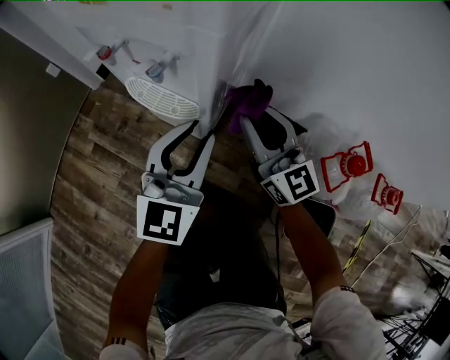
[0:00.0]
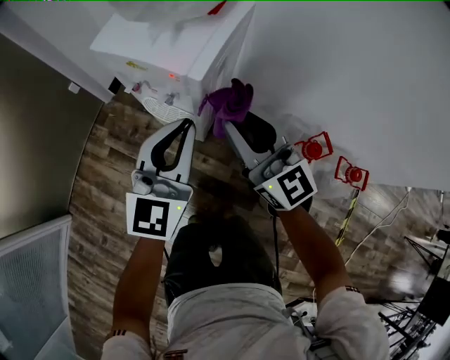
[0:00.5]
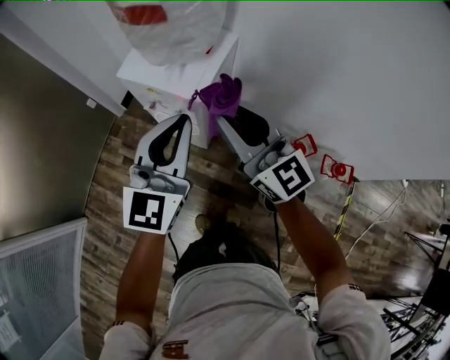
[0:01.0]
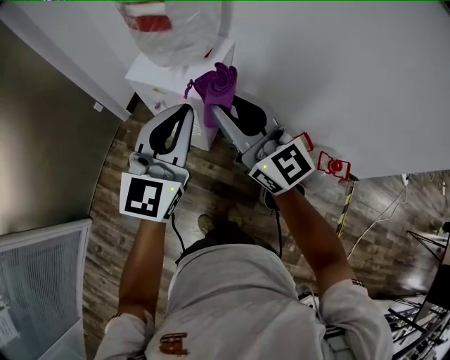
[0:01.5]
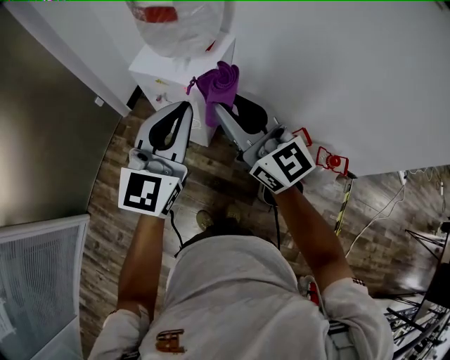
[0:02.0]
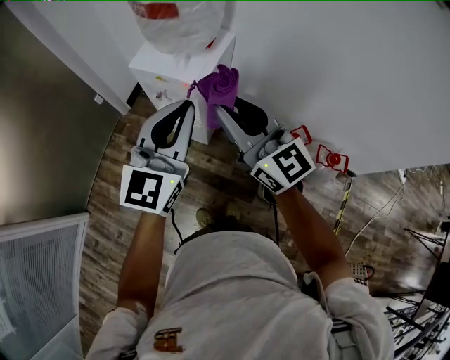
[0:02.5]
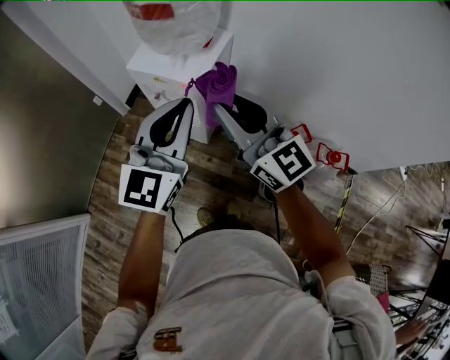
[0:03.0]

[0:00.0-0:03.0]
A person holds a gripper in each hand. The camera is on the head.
0:00.0 to 0:01.5: The two grippers go some 50 cm upward. The left gripper closes up.
0:01.5 to 0:03.0: The grippers make only small movements.

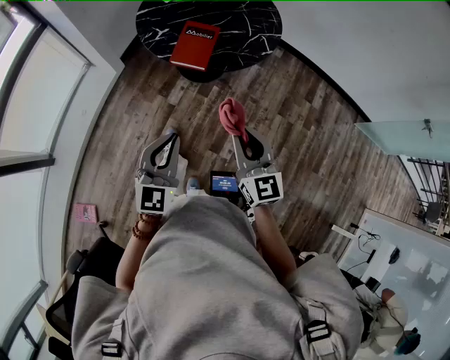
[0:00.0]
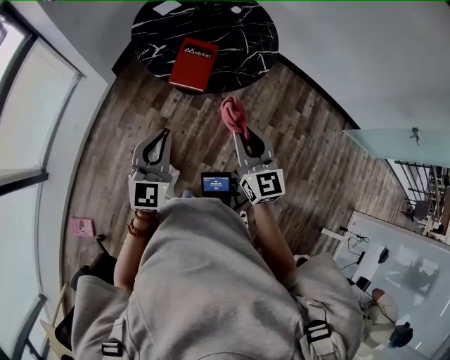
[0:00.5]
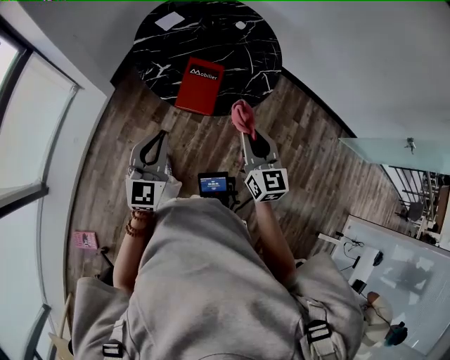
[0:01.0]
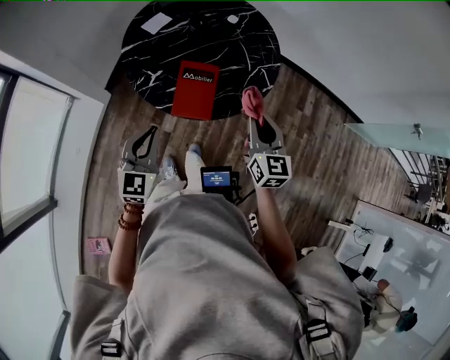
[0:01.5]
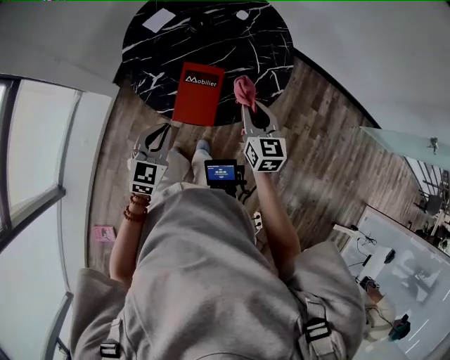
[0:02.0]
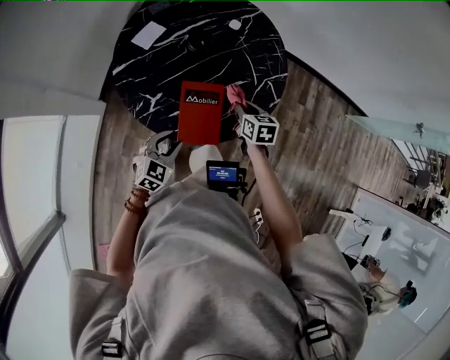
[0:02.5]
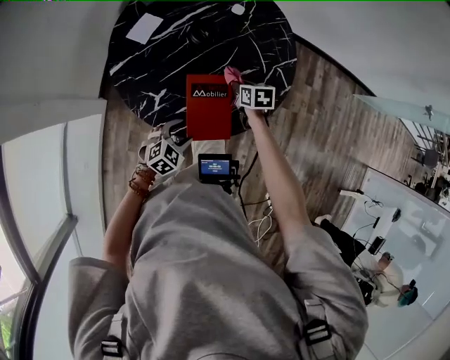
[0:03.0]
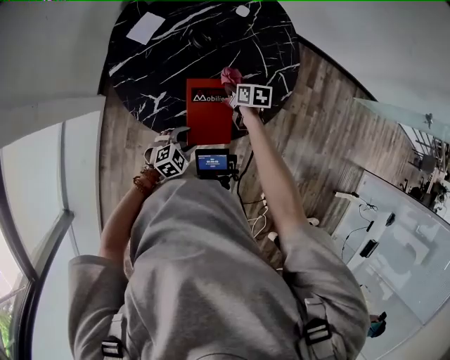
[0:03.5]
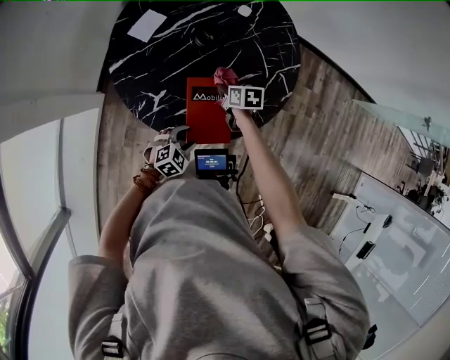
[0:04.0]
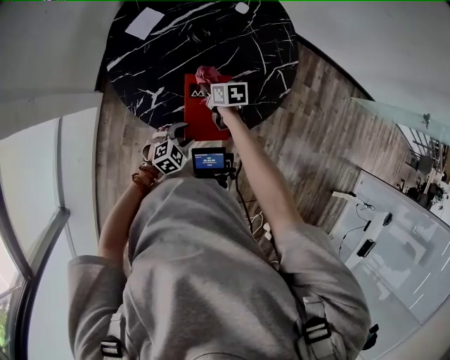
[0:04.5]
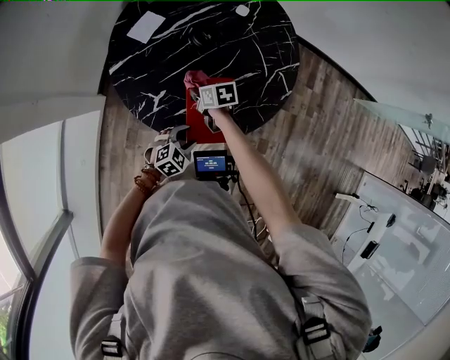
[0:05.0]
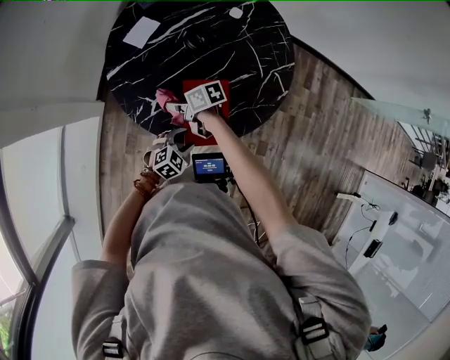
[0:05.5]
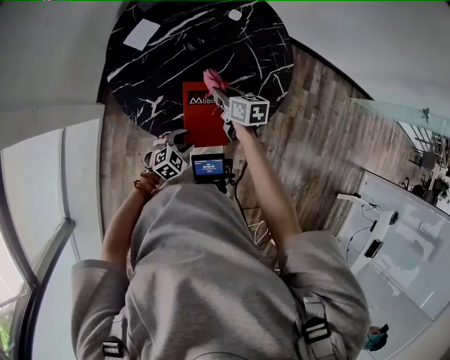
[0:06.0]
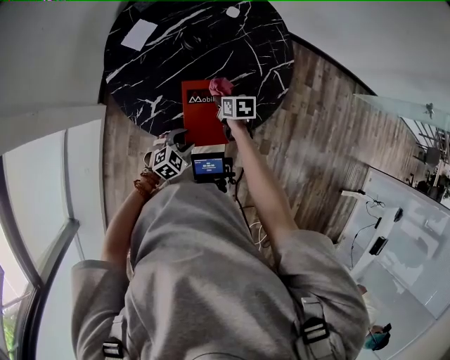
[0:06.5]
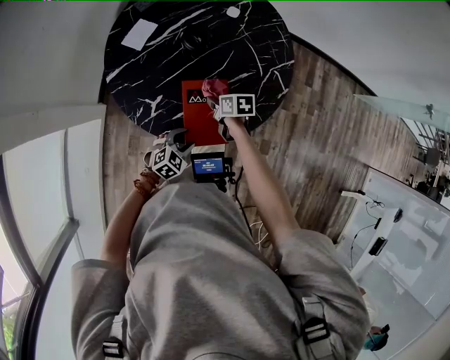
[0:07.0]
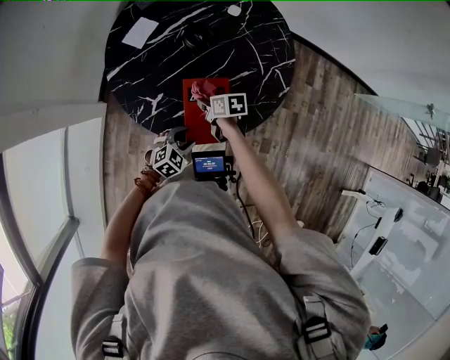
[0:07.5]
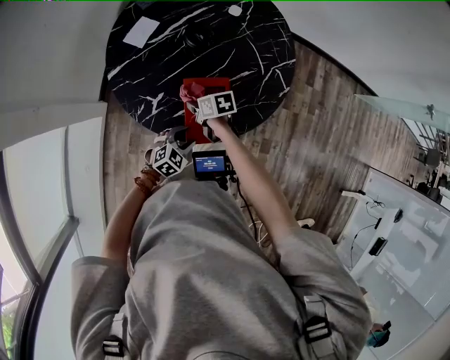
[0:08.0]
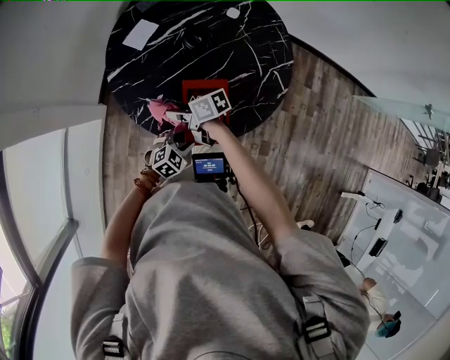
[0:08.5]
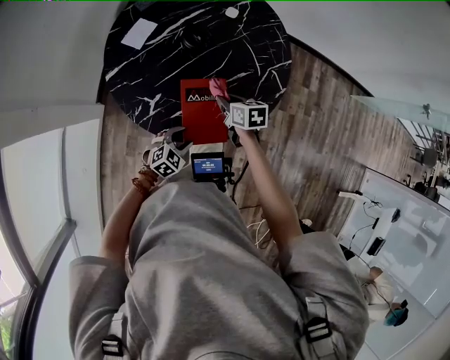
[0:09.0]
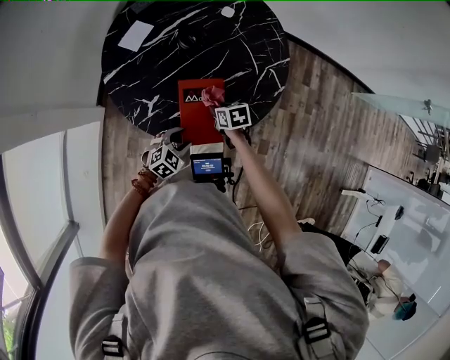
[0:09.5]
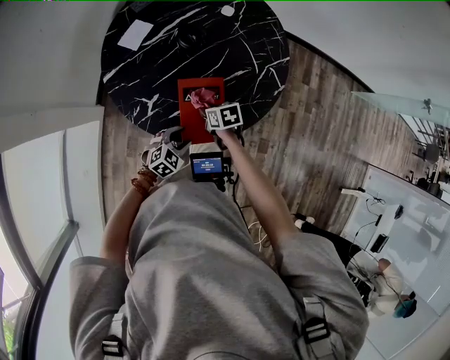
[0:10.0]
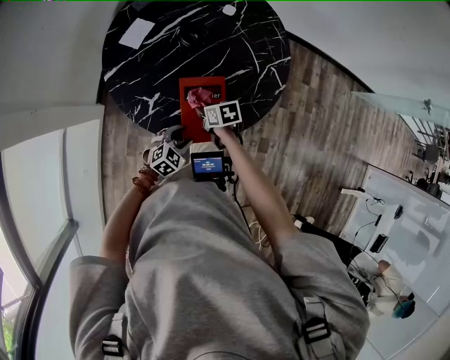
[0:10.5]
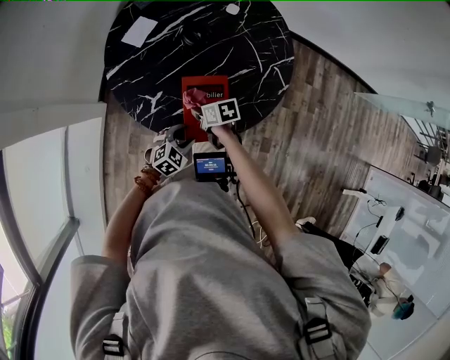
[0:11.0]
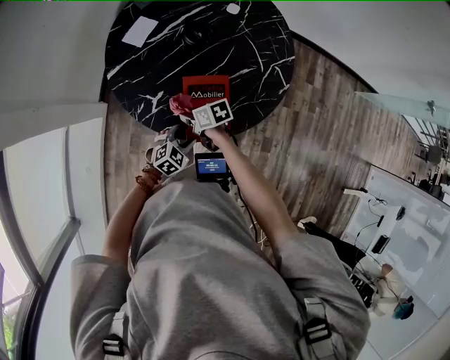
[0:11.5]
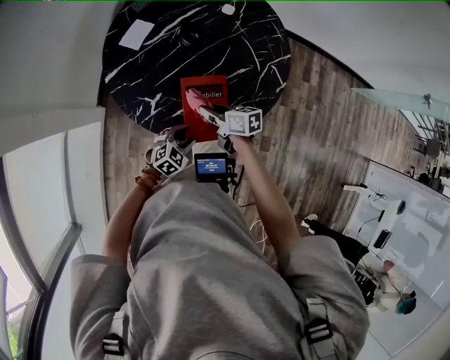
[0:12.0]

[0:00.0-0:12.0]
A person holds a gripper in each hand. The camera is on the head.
0:00.0 to 0:02.0: Both grippers move forward, roughly 35 cm. The right gripper turns by some 20 degrees.
0:02.0 to 0:04.0: The left gripper moves downward, approximately 20 cm, swivels some 50 degrees, and opens; the right gripper heads downward, forward and to the left, covering roughly 30 cm, and tips its fingers downward by about 30 degrees.
0:04.0 to 0:06.0: The right gripper goes about 10 cm upward.
0:06.0 to 0:08.0: The right gripper moves downward, to the left and backward, about 15 cm, and rotates roughly 20 degrees.
0:10.0 to 0:12.0: The right gripper heads upward, covering roughly 10 cm, and rotates about 30 degrees.

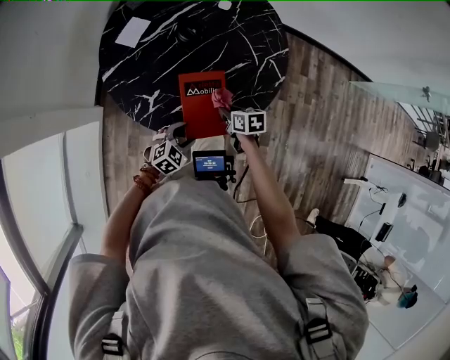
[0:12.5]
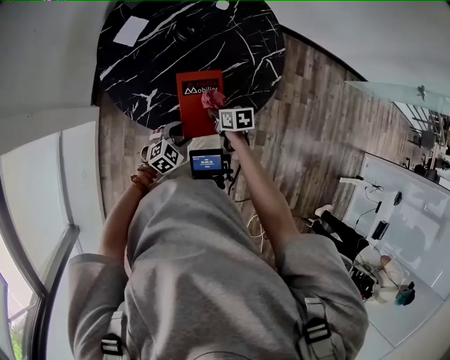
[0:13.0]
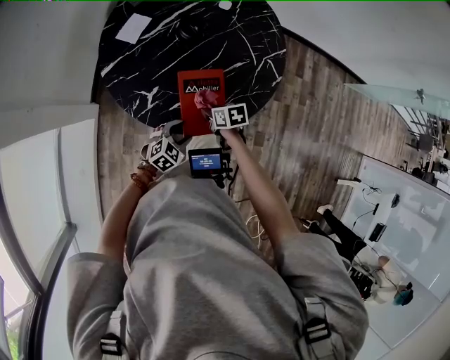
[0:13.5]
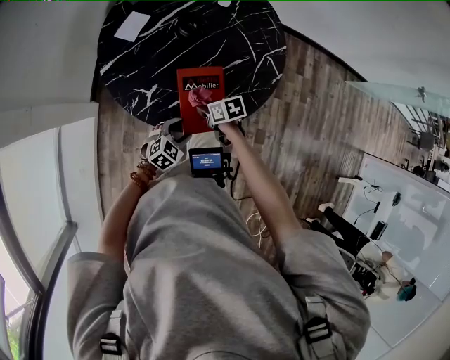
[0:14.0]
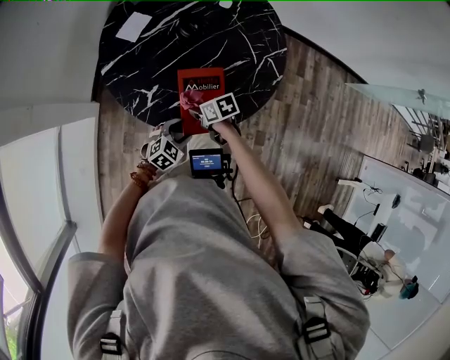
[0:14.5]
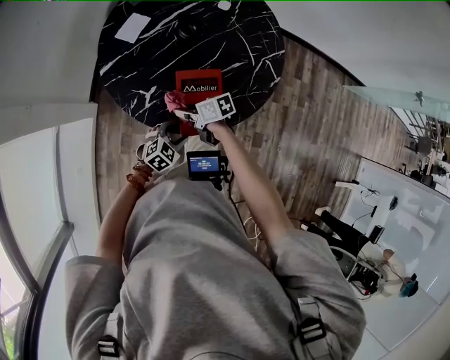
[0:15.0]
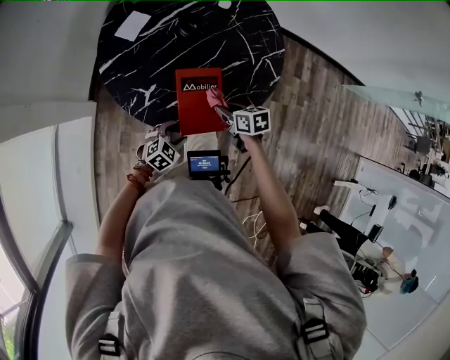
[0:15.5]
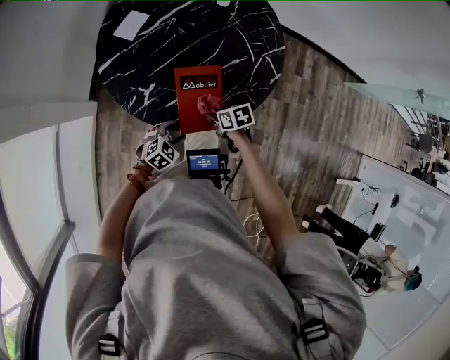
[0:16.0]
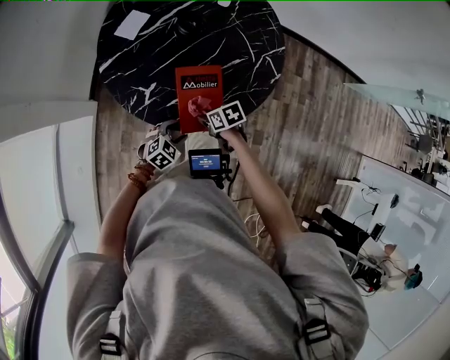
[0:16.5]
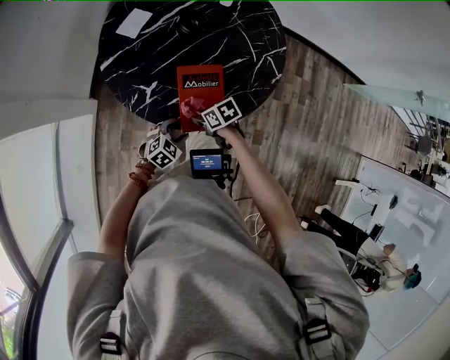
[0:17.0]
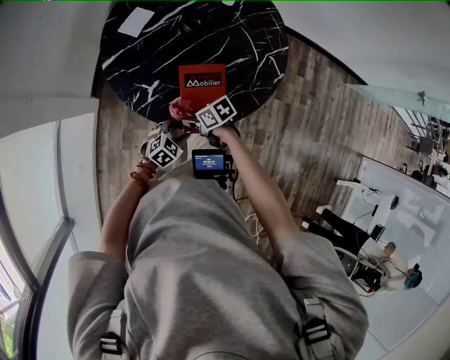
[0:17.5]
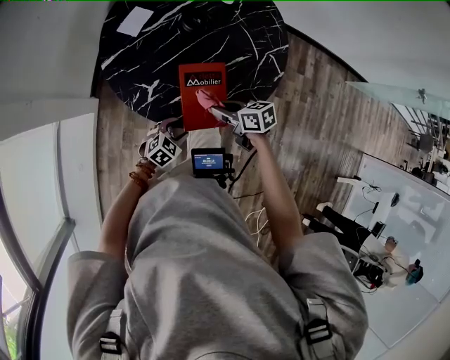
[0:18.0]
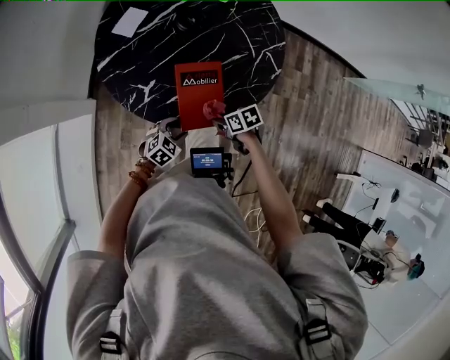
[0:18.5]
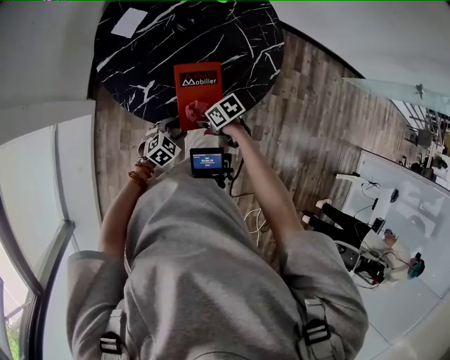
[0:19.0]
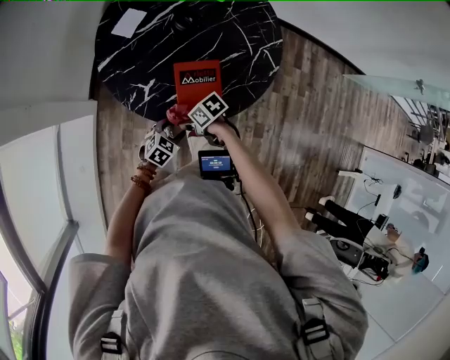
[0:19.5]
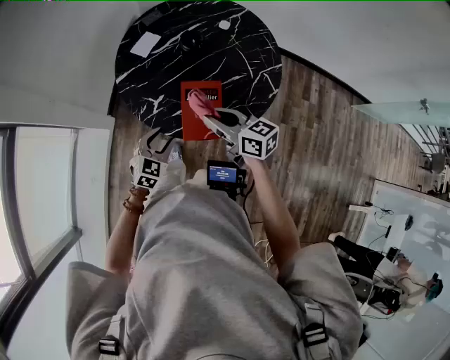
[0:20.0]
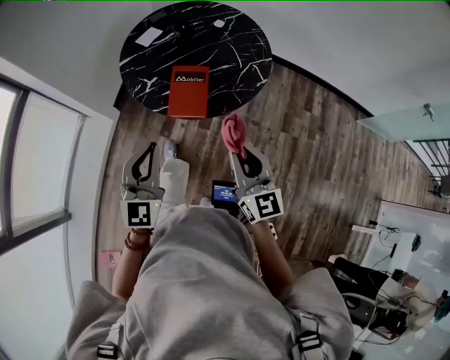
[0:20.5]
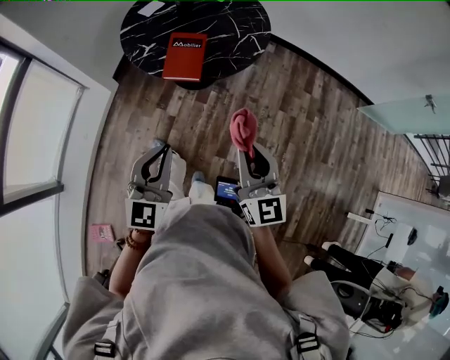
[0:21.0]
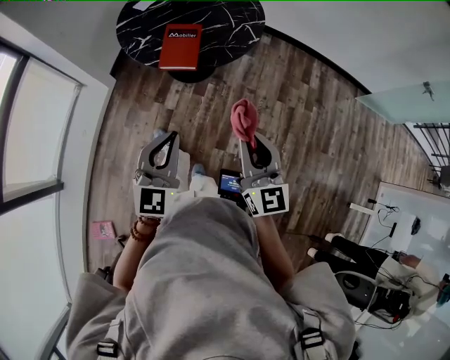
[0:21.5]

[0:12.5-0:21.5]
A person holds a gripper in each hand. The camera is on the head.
0:12.5 to 0:14.5: The right gripper changes place by roughly 10 cm, and changes its angle by roughly 20 degrees.
0:17.0 to 0:19.5: The right gripper reaches some 10 cm upward, then returns.
0:19.5 to 0:21.5: The left gripper heads upward, covering approximately 35 cm, points its fingers some 40 degrees further upward, and closes up, while the right gripper changes place by approximately 60 cm, and points its fingers some 50 degrees further upward.

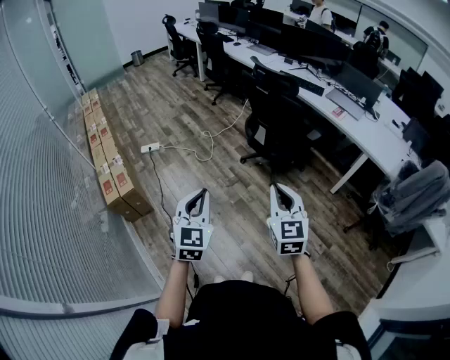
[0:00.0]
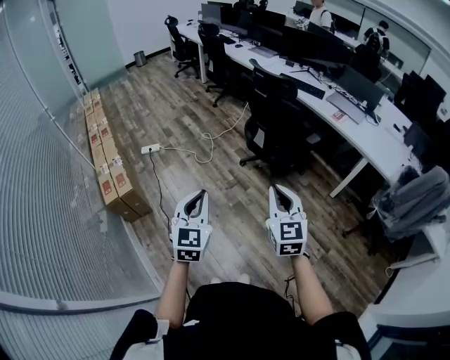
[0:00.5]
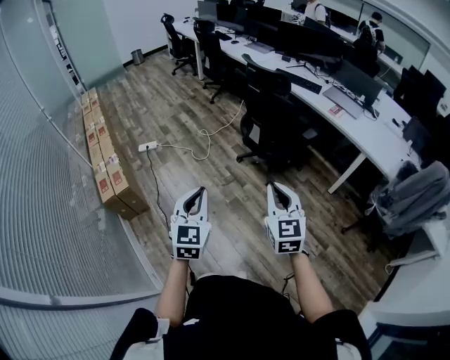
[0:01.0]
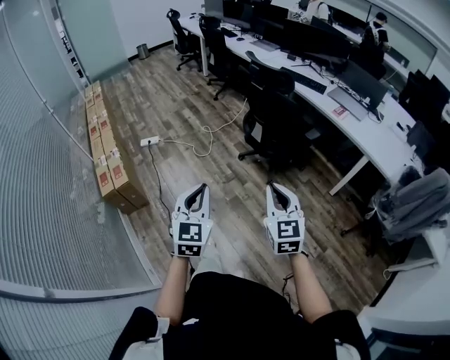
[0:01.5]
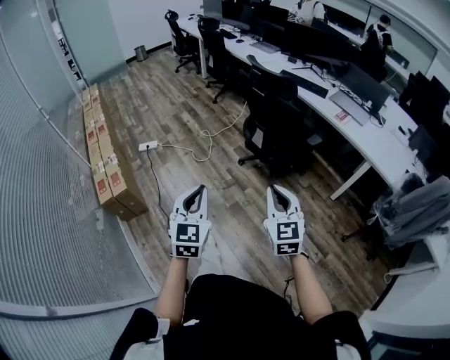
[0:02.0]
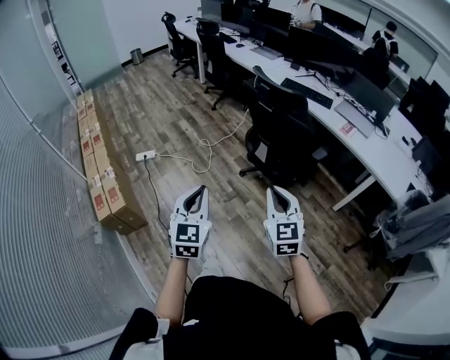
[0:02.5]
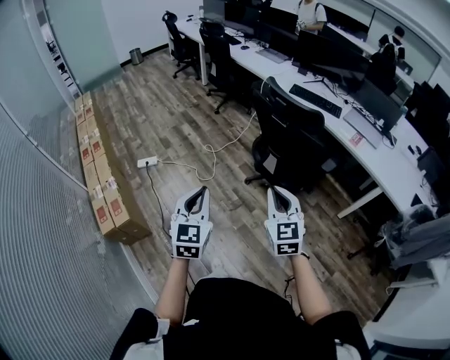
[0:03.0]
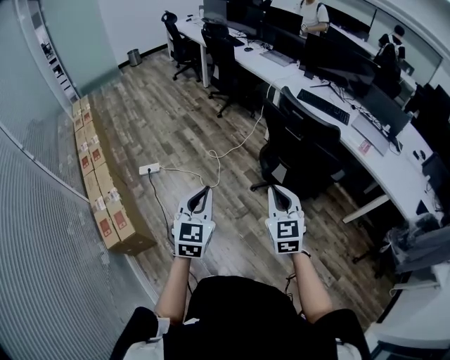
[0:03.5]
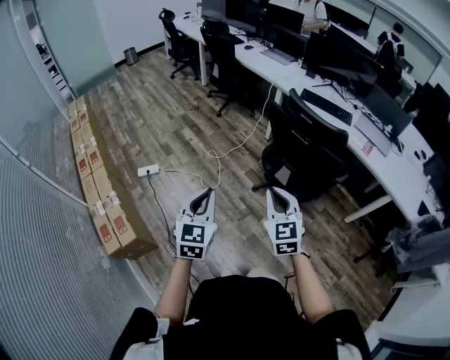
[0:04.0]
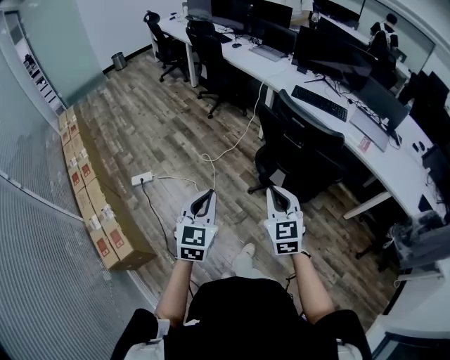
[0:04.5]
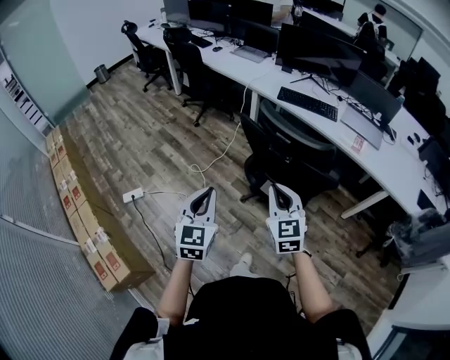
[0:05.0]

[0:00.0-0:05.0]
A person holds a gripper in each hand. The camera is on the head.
0:00.0 to 0:02.5: The grippers both shift forward by about 20 cm.
0:02.5 to 0:05.0: Both grippers move forward, about 35 cm.
